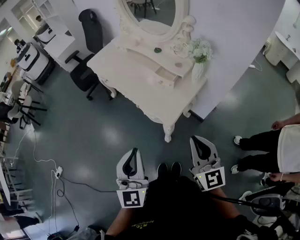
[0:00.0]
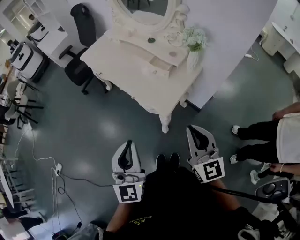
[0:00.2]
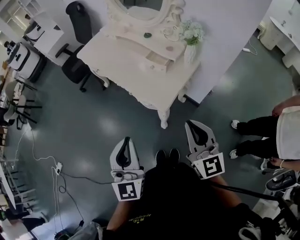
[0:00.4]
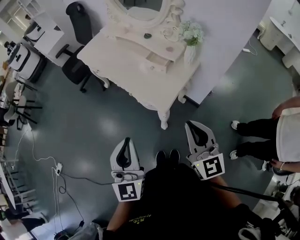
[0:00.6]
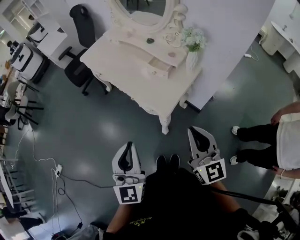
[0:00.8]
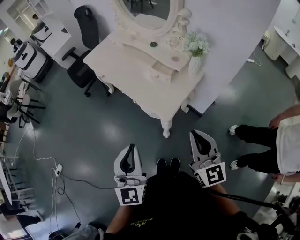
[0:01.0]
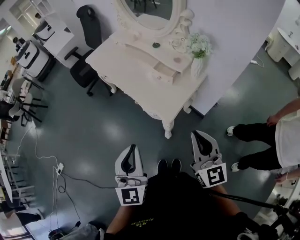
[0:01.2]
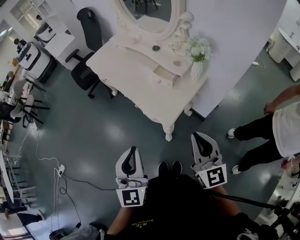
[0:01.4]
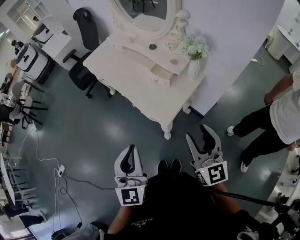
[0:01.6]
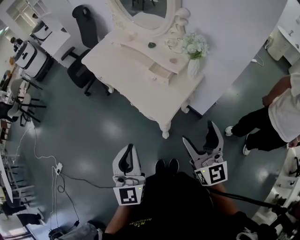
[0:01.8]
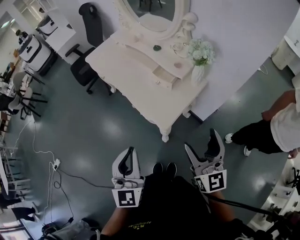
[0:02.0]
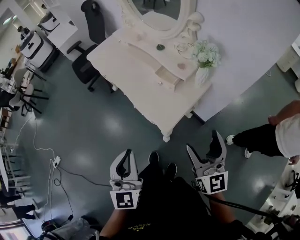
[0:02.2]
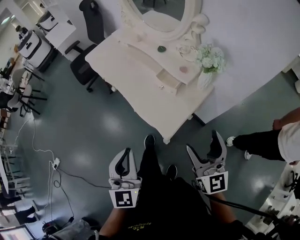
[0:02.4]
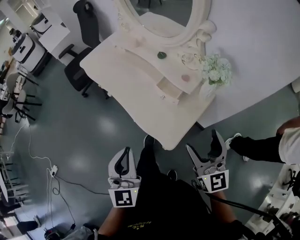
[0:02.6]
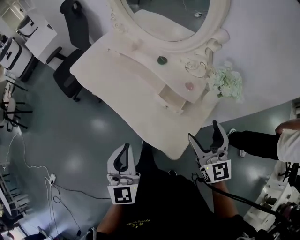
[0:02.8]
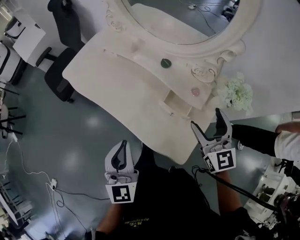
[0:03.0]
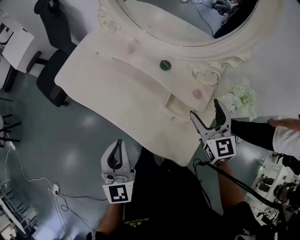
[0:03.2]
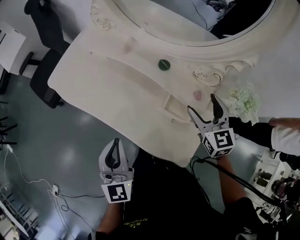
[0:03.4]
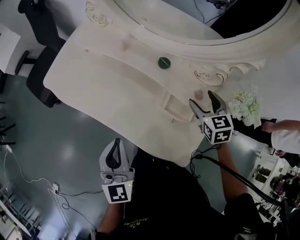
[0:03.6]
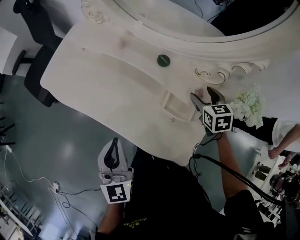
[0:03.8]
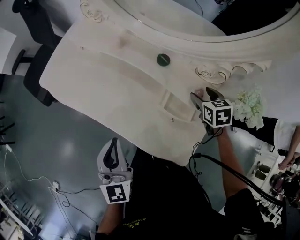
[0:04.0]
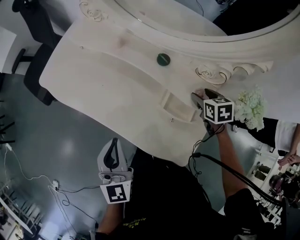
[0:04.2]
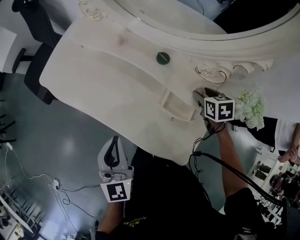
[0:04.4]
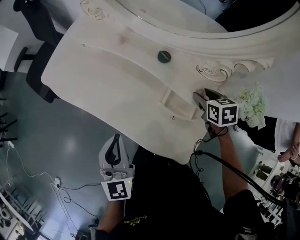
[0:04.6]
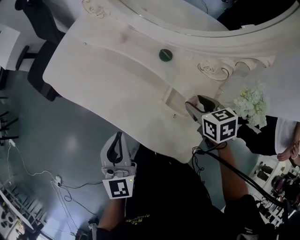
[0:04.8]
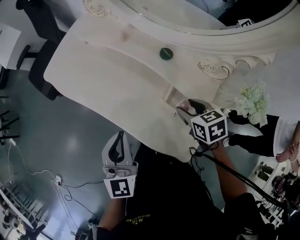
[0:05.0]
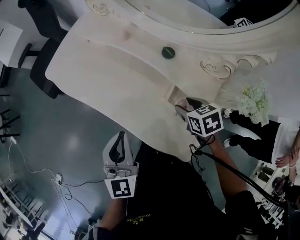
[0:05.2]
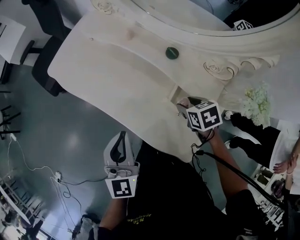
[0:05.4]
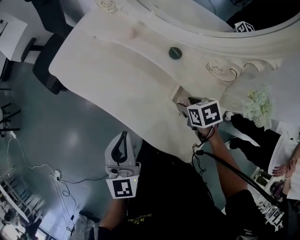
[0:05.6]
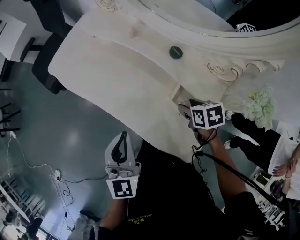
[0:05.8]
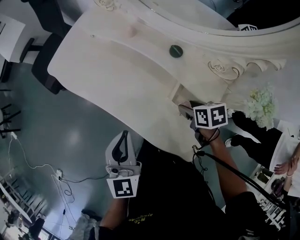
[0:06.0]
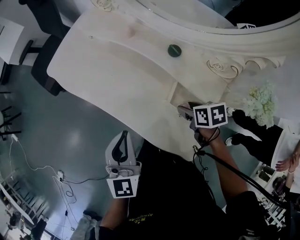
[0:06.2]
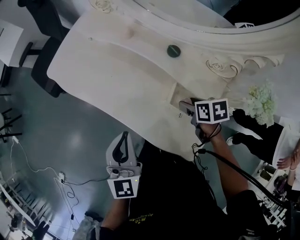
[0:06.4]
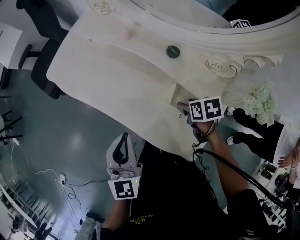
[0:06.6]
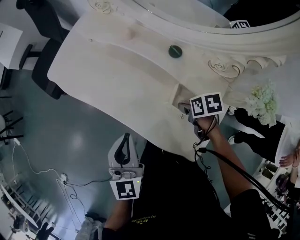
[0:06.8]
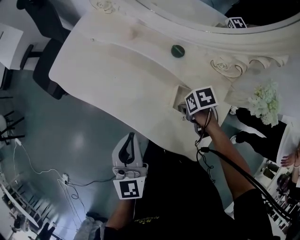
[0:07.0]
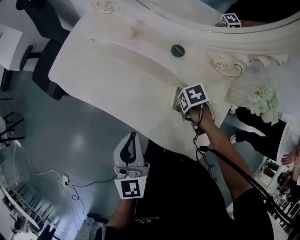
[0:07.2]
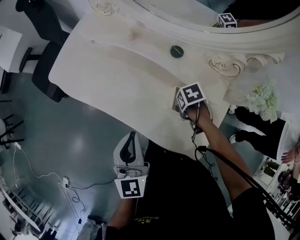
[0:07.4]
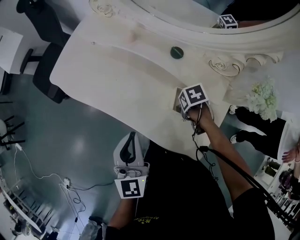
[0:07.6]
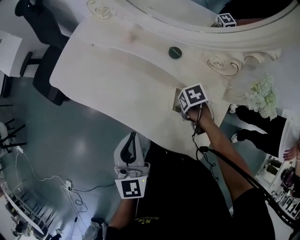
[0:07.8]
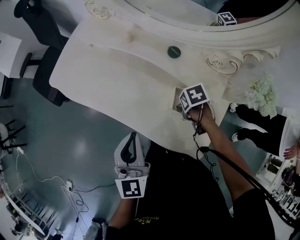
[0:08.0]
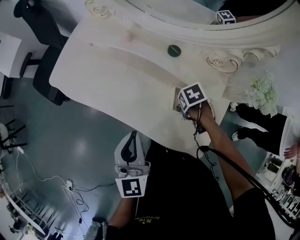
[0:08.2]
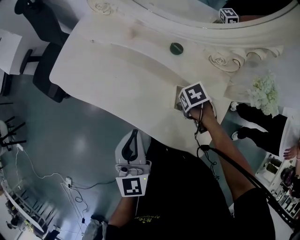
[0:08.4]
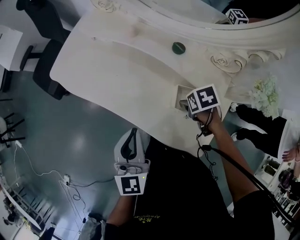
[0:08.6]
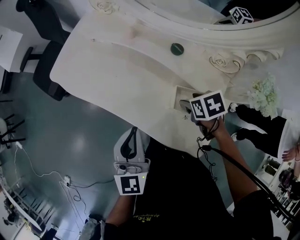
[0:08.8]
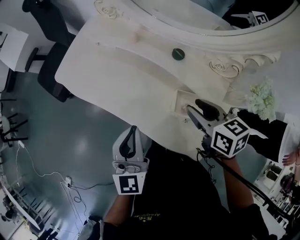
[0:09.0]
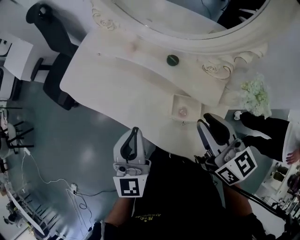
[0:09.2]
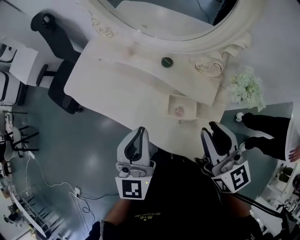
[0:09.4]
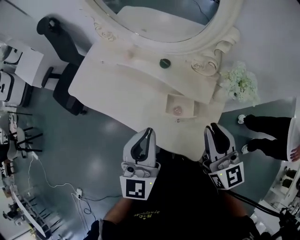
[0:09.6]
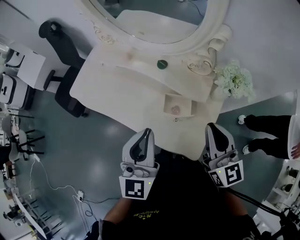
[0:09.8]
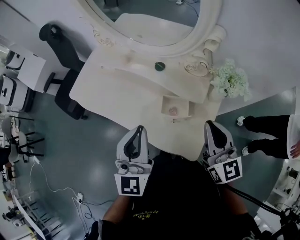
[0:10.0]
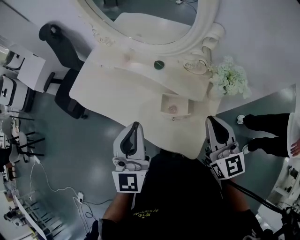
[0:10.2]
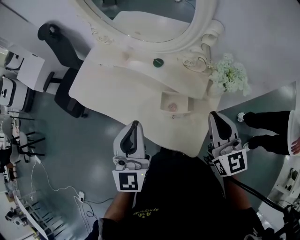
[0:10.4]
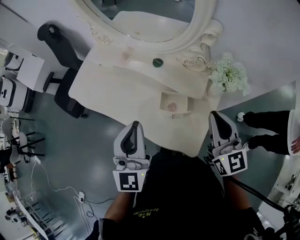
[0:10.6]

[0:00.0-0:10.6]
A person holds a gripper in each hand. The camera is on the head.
0:00.0 to 0:01.6: The left gripper ends up roughly 5 cm from where it was. The right gripper shifts about 5 cm forward, and opens its fingers.
0:01.6 to 0:03.0: The grippers both shift forward by some 35 cm. The right gripper opens up.
0:03.0 to 0:04.6: The left gripper goes approximately 15 cm forward and downward. Meanwhile the right gripper moves downward and forward, approximately 25 cm, points its fingers roughly 50 degrees further downward, and closes its fingers.
0:04.6 to 0:06.0: The right gripper moves to the left, some 10 cm.
0:06.0 to 0:07.6: The right gripper is displaced downward by about 5 cm, and changes its angle by approximately 20 degrees.
0:07.6 to 0:09.0: The right gripper shifts roughly 20 cm upward, and points its fingers roughly 40 degrees further upward.
0:09.0 to 0:10.6: The left gripper moves upward, to the right and backward, roughly 15 cm, while the right gripper travels to the right, upward and backward by roughly 20 cm, angles its fingers upward, by about 30 degrees, and closes its fingers.

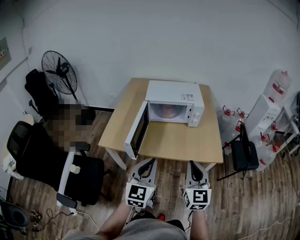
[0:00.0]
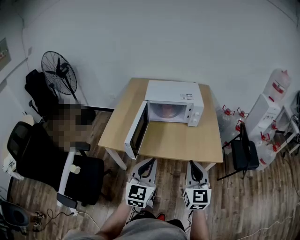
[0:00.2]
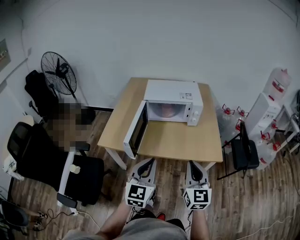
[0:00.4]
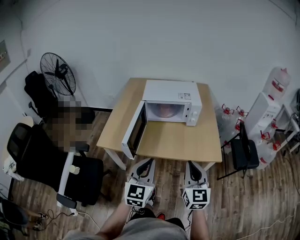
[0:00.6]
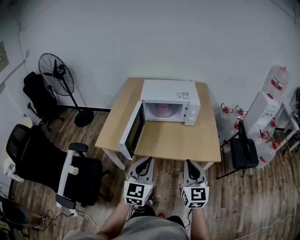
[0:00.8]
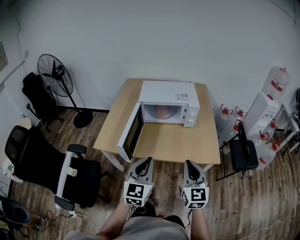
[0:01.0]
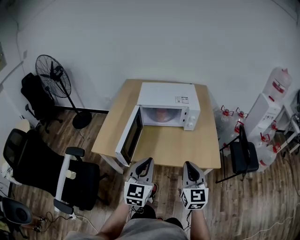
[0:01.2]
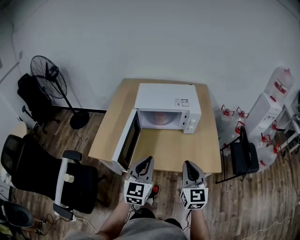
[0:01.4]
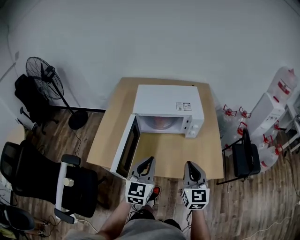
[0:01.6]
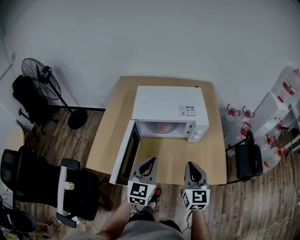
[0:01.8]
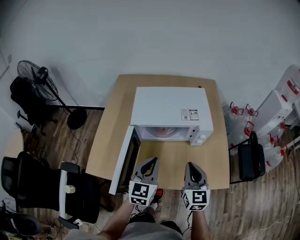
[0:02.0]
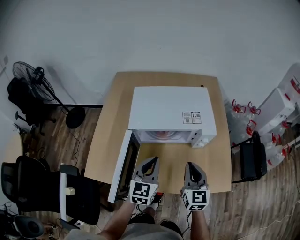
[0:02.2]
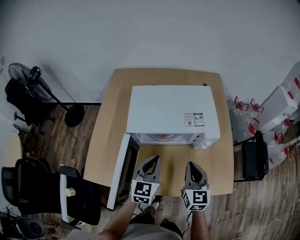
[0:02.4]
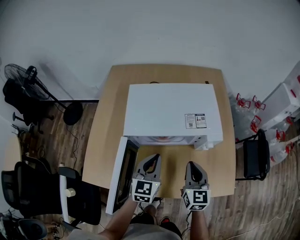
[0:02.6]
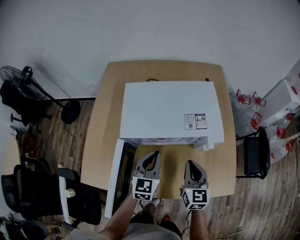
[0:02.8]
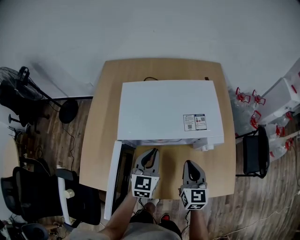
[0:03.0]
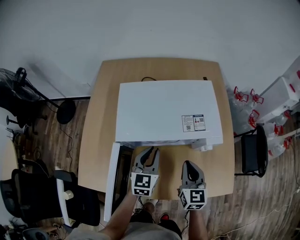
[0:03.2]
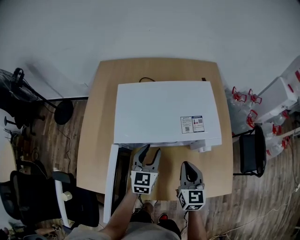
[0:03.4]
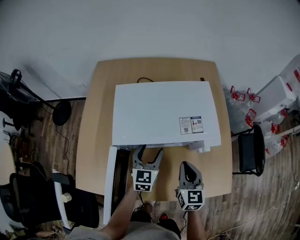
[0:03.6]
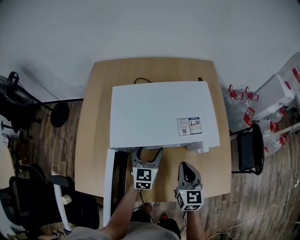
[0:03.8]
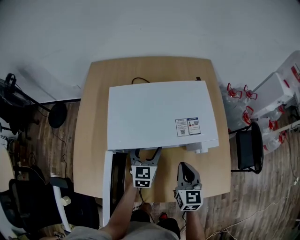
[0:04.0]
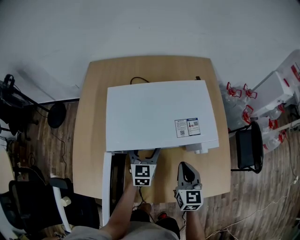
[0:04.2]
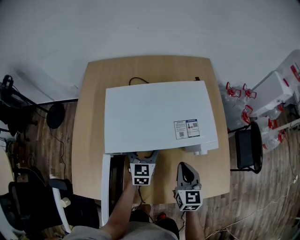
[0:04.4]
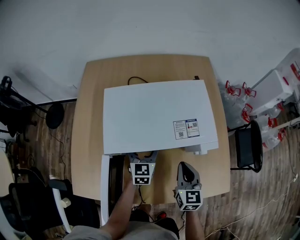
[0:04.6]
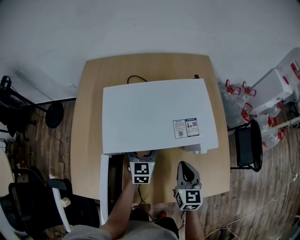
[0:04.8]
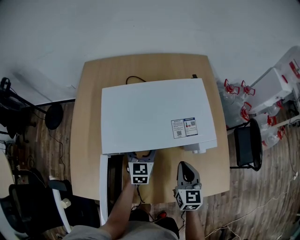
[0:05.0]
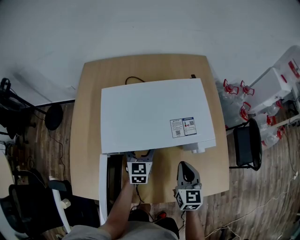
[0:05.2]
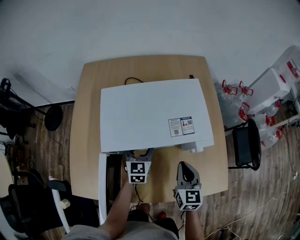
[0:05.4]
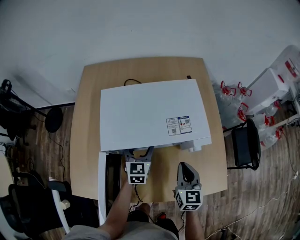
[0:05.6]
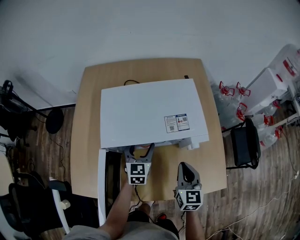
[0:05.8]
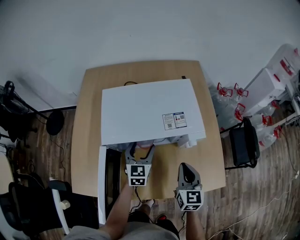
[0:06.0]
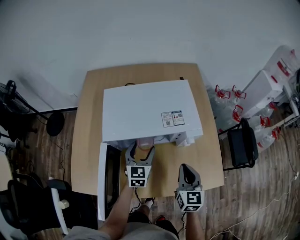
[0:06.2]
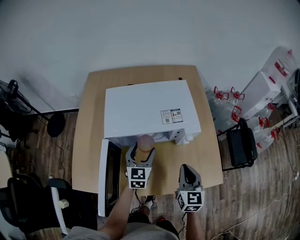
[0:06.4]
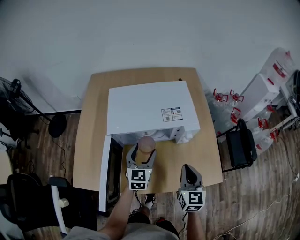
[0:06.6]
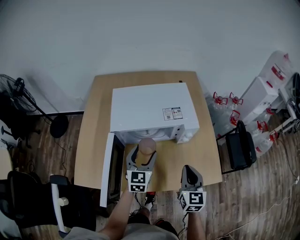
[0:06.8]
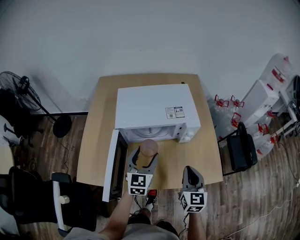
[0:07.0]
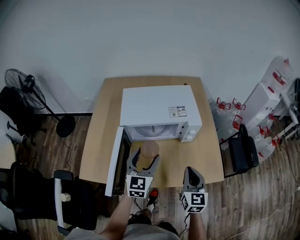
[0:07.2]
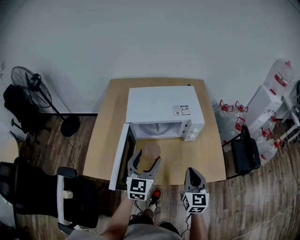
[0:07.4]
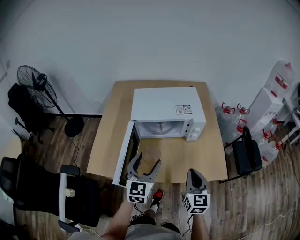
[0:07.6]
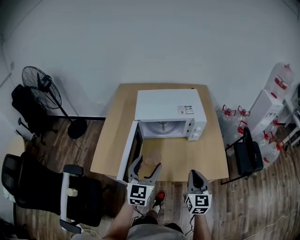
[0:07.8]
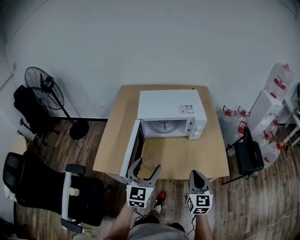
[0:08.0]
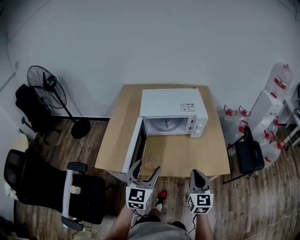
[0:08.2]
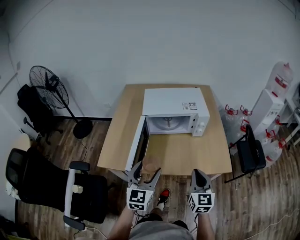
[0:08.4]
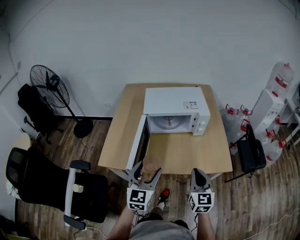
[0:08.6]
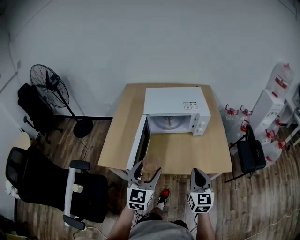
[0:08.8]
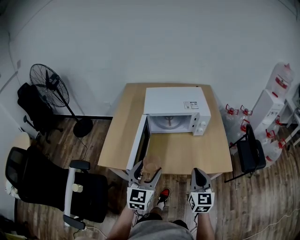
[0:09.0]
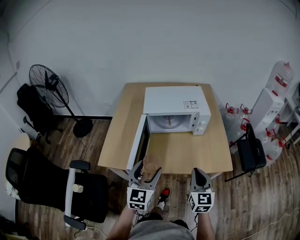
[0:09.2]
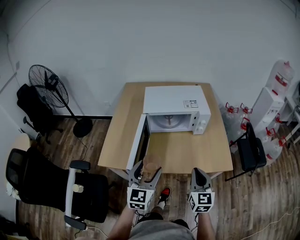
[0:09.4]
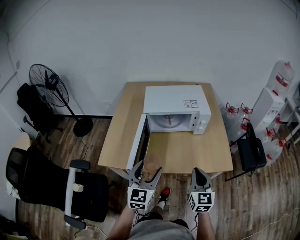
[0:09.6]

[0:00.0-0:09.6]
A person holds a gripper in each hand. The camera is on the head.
0:00.0 to 0:01.6: The two grippers go roughly 20 cm forward.
0:01.6 to 0:03.2: The grippers both shift forward and downward by approximately 25 cm.
0:03.2 to 0:04.8: The left gripper shifts approximately 10 cm forward and downward, and opens up.
0:04.8 to 0:06.4: Both grippers move backward and upward, about 10 cm.
0:06.4 to 0:08.0: The right gripper moves backward, approximately 20 cm, while the left gripper is displaced backward and upward by approximately 30 cm.
0:08.0 to 0:09.6: The left gripper shifts by roughly 5 cm.

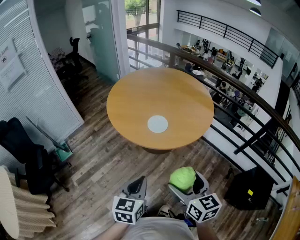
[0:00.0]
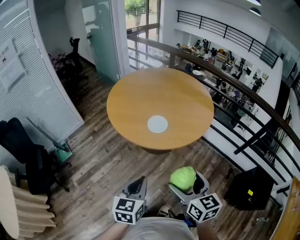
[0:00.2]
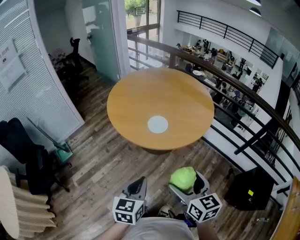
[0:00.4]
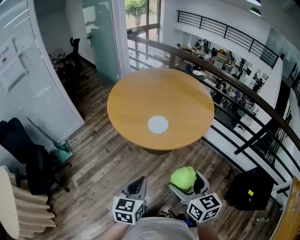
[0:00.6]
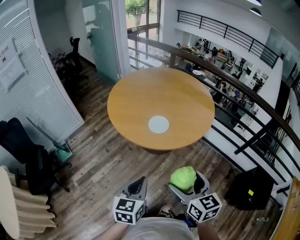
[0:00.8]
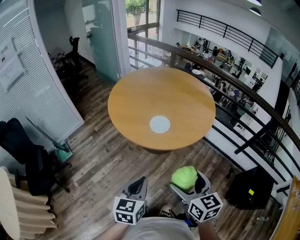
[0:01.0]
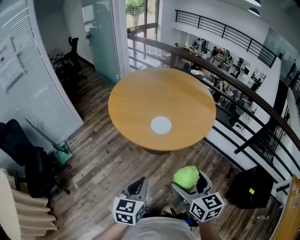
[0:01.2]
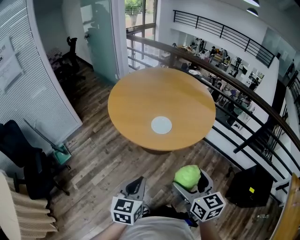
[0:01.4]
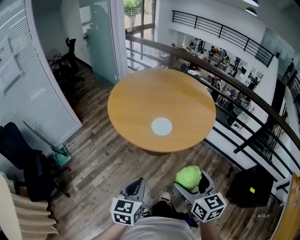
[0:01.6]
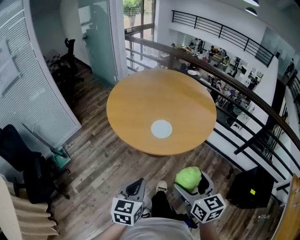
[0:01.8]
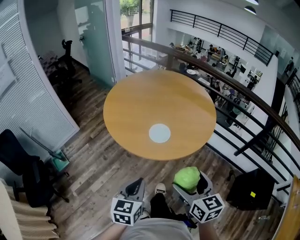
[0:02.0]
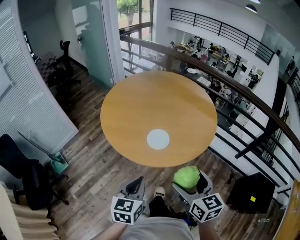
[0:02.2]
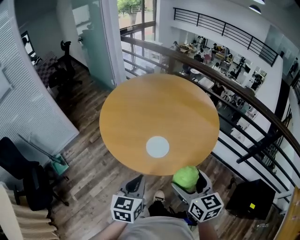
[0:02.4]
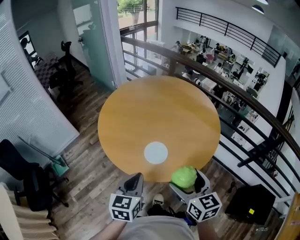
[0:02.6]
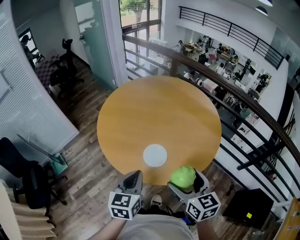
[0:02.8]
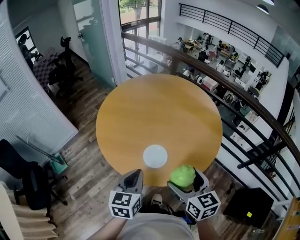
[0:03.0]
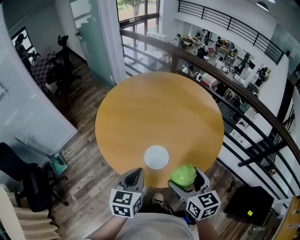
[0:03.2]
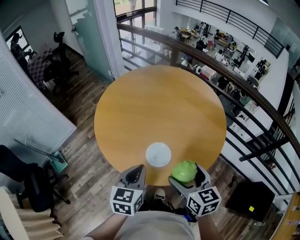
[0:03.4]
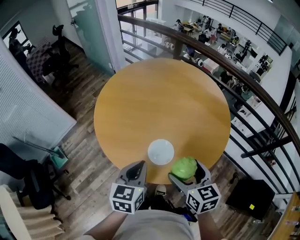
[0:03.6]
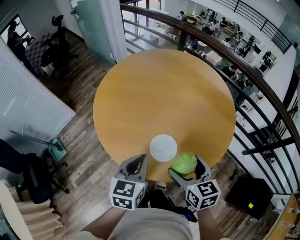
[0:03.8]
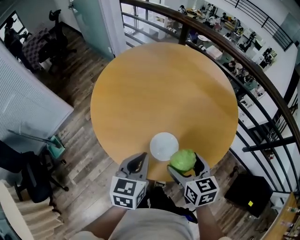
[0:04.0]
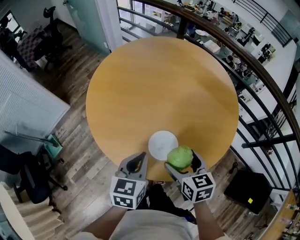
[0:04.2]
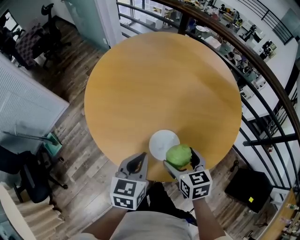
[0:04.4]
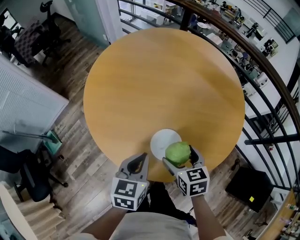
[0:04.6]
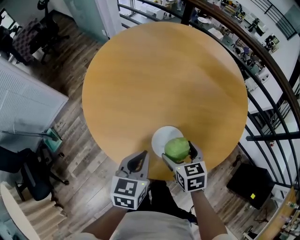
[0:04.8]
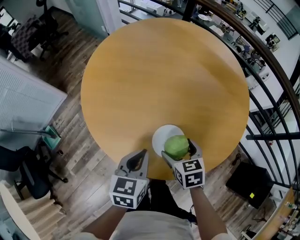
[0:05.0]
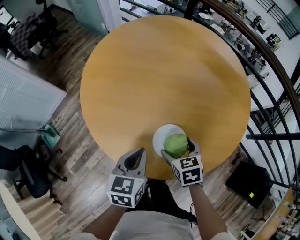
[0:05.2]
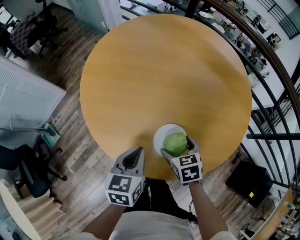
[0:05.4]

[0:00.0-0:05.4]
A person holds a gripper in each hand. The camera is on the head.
0:00.0 to 0:01.4: The left gripper travels to the left by about 5 cm.
0:01.4 to 0:02.8: Both grippers travel together forward, about 25 cm.
0:02.8 to 0:04.0: The grippers both shift forward and downward by roughly 15 cm.
0:04.0 to 0:05.4: The left gripper goes some 10 cm downward; the right gripper shifts about 20 cm downward and forward, and rotates roughly 20 degrees.
